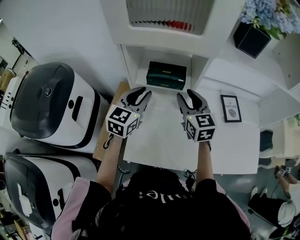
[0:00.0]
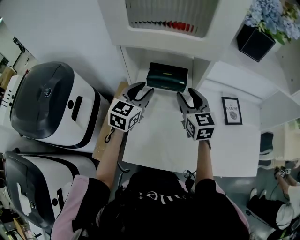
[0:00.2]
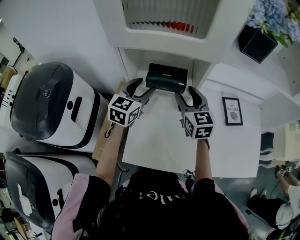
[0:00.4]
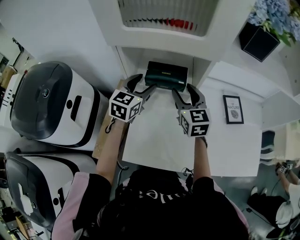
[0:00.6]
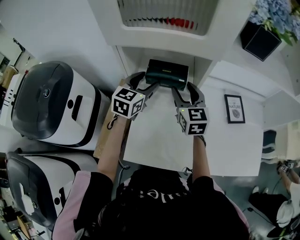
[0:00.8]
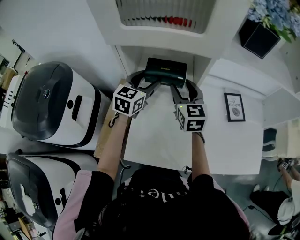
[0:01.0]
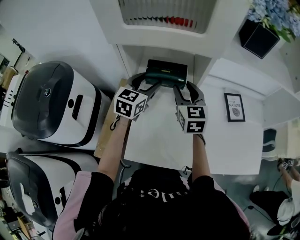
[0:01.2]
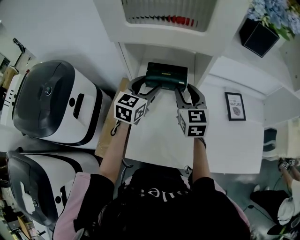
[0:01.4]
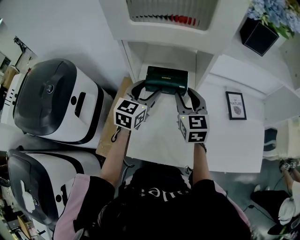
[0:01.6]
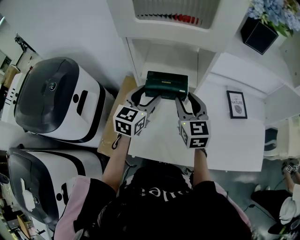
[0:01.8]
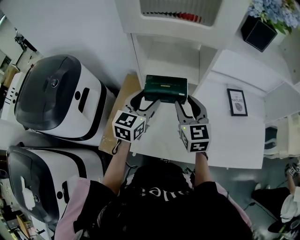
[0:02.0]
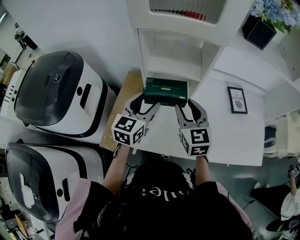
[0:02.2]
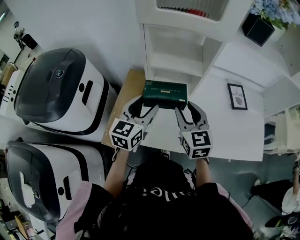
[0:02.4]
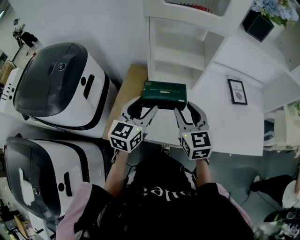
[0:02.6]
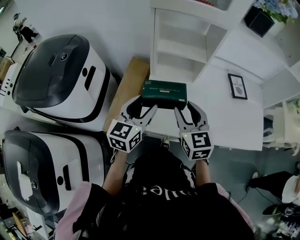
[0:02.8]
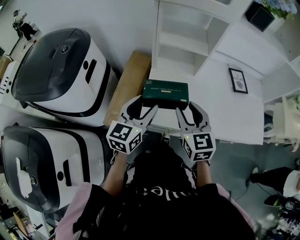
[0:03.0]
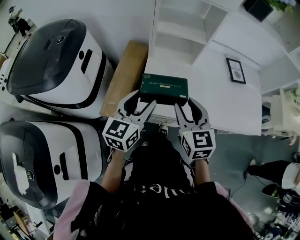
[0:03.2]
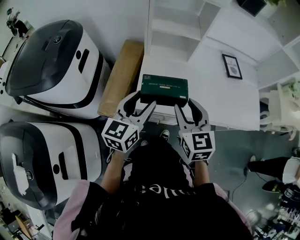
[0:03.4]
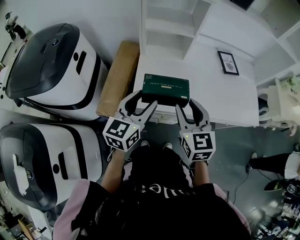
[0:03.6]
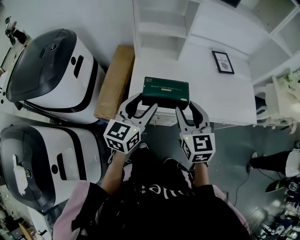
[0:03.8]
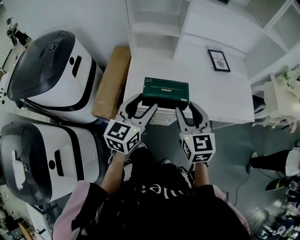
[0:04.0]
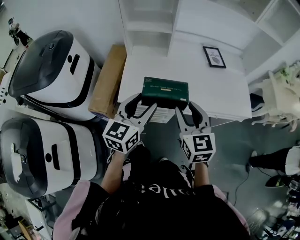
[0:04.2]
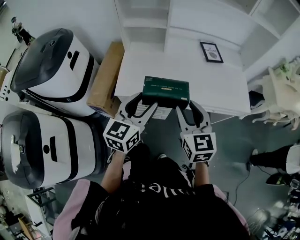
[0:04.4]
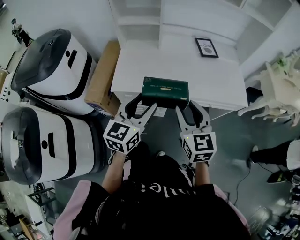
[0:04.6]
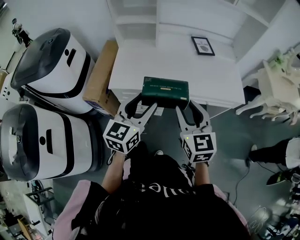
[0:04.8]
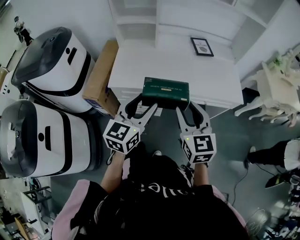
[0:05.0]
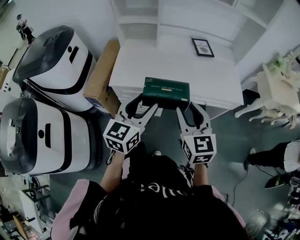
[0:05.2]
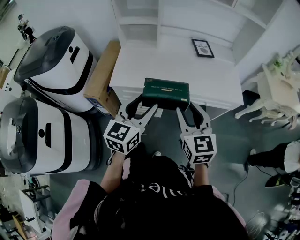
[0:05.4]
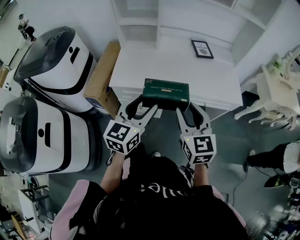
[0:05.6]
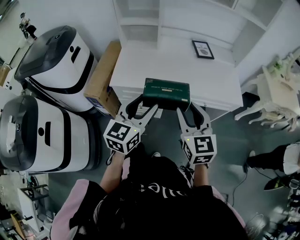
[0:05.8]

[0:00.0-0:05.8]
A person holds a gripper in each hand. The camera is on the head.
0:00.0 to 0:01.4: The left gripper travels forward by approximately 5 cm, and opens up.
0:01.4 to 0:02.8: Both grippers travel together backward, some 25 cm.
0:02.8 to 0:04.4: Both grippers move backward and to the right, some 30 cm.
0:04.4 to 0:05.8: The grippers both shift backward and to the right by roughly 10 cm.

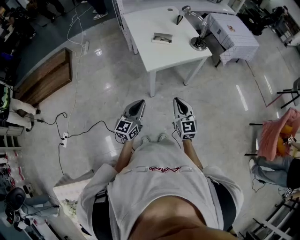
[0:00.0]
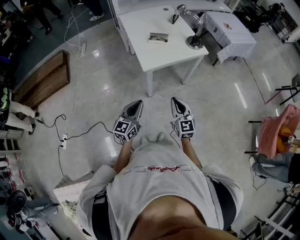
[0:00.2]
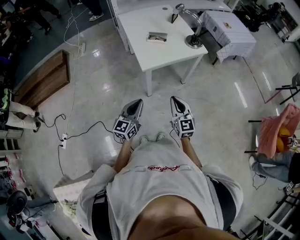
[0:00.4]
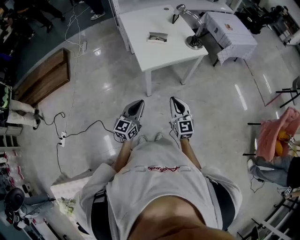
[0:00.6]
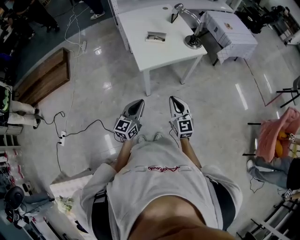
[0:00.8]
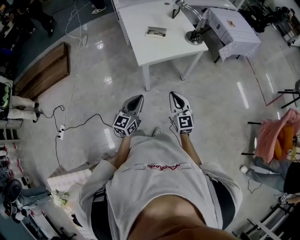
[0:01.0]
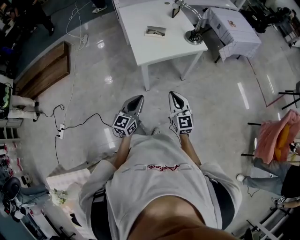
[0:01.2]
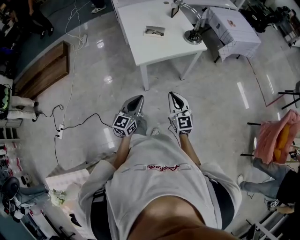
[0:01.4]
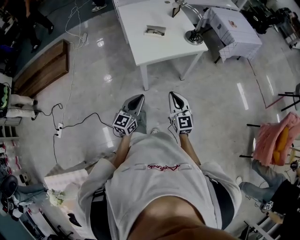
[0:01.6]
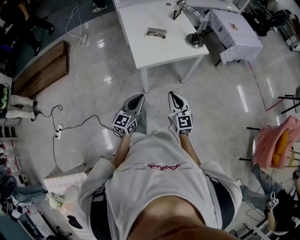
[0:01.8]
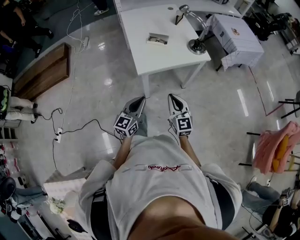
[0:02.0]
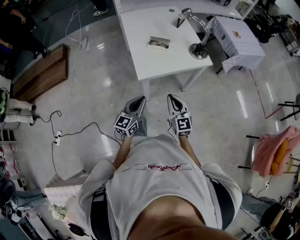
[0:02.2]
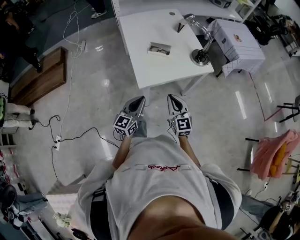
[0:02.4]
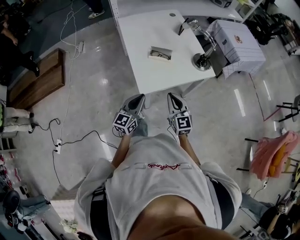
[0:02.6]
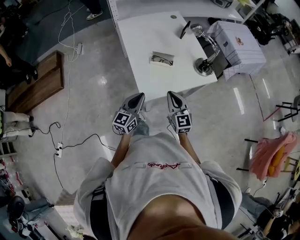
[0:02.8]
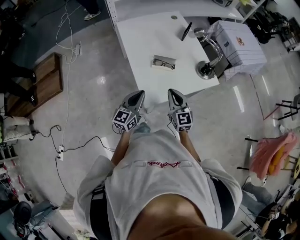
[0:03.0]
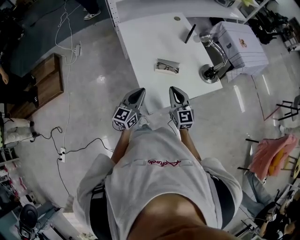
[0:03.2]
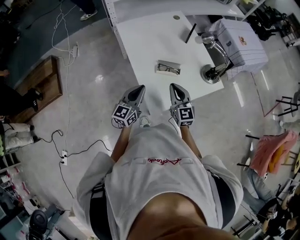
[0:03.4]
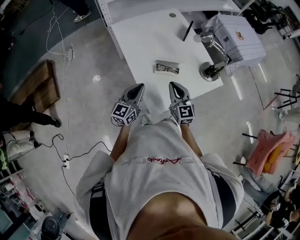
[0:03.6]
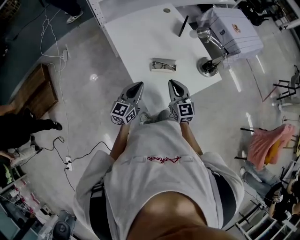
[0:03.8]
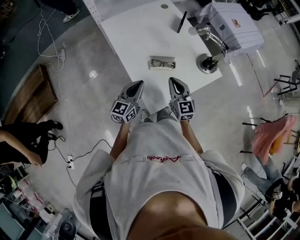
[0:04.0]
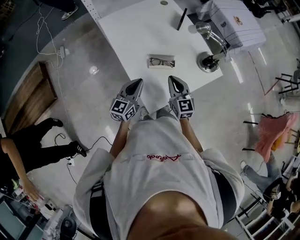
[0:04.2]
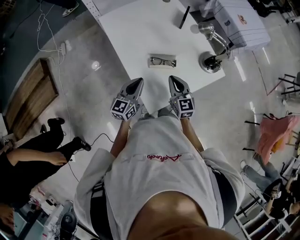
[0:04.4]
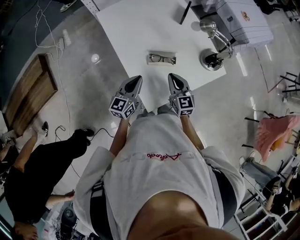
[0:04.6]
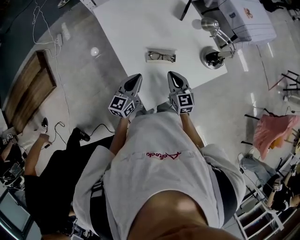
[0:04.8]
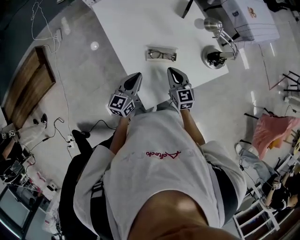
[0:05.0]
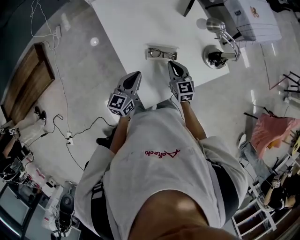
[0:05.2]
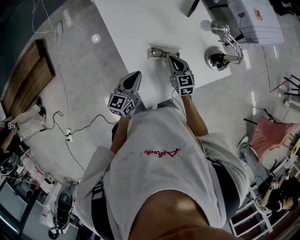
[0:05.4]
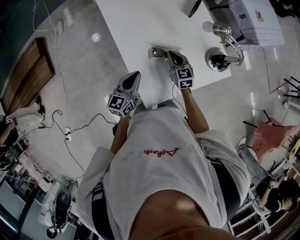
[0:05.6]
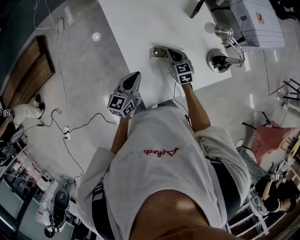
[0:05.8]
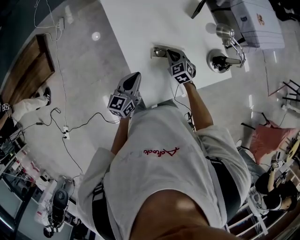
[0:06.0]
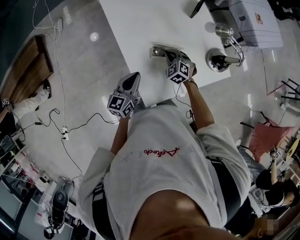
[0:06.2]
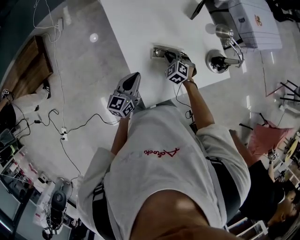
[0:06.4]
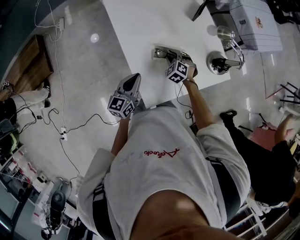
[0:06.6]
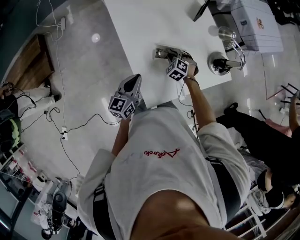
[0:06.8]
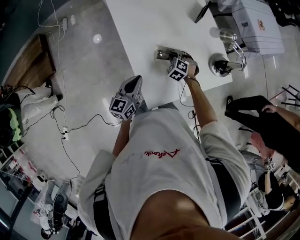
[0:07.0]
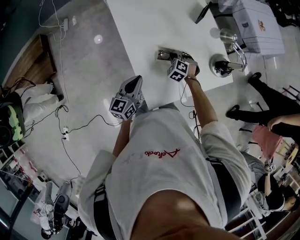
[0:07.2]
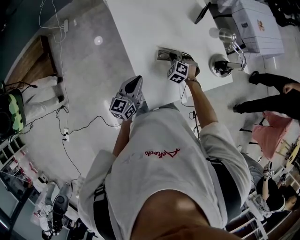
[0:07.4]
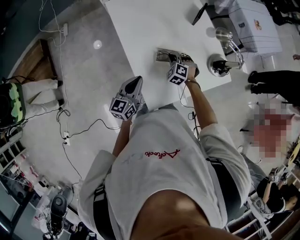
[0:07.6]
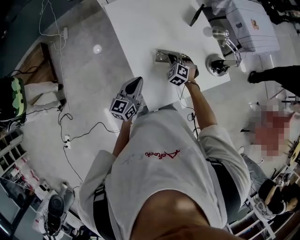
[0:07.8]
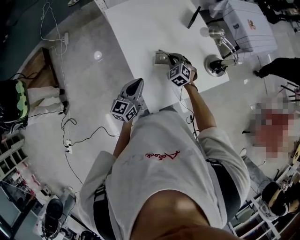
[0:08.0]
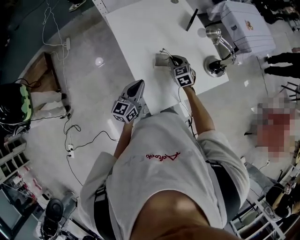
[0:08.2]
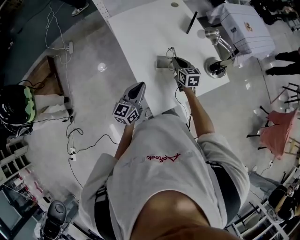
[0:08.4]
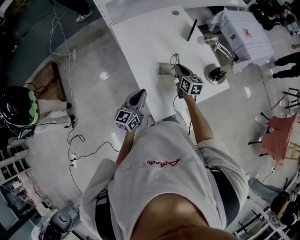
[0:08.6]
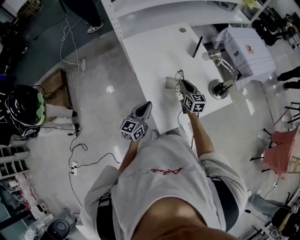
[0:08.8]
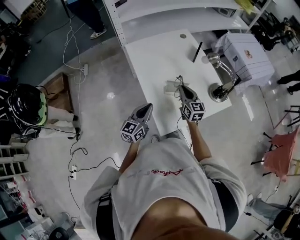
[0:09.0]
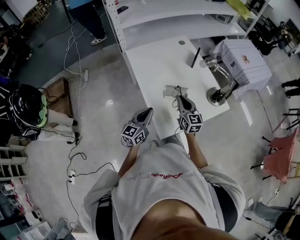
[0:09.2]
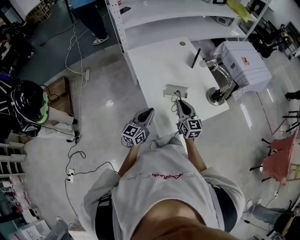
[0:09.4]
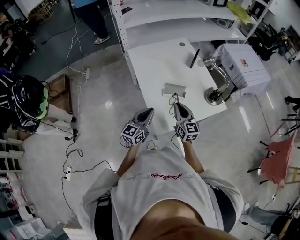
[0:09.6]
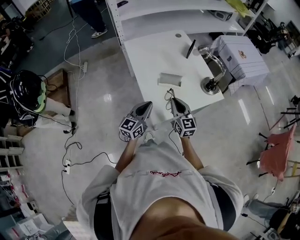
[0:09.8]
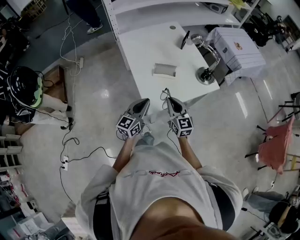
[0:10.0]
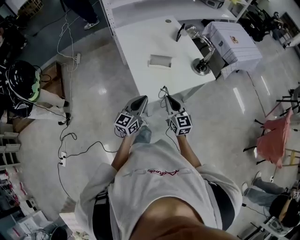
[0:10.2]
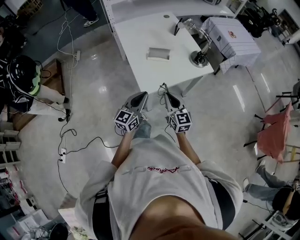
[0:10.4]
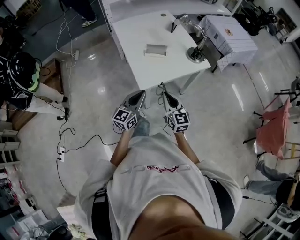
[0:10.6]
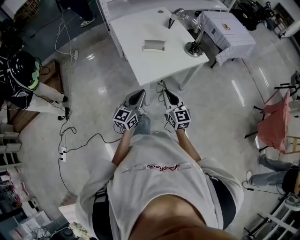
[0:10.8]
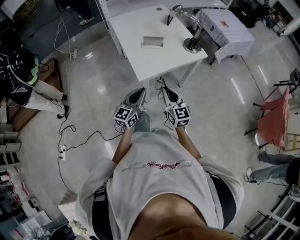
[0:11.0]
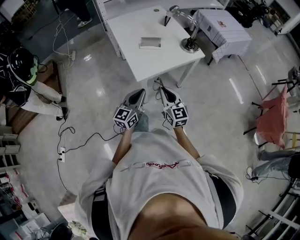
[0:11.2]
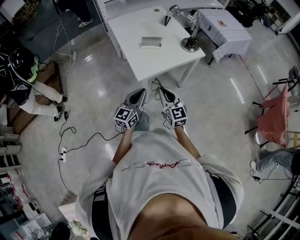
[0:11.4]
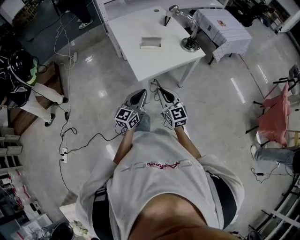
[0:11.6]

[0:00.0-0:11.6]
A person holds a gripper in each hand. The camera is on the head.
0:00.0 to 0:01.4: Both grippers travel together to the right, some 5 cm.
0:01.4 to 0:02.8: The grippers both shift forward by about 25 cm.
0:02.8 to 0:04.4: Both grippers travel together forward, roughly 15 cm.
0:04.4 to 0:05.8: The right gripper goes approximately 15 cm forward and downward, and changes its angle by some 20 degrees.
0:05.8 to 0:07.2: The right gripper is displaced downward by roughly 5 cm, rotates around the line of its fingers by roughly 40 degrees, counterclockwise from behind, and opens, then closes once more.
0:07.2 to 0:08.8: The right gripper travels upward by roughly 15 cm, and rotates around the line of its fingers by approximately 60 degrees, clockwise from behind. Meanwhile the left gripper ends up about 5 cm from where it was.
0:08.8 to 0:10.2: The left gripper heads backward and to the right, covering roughly 15 cm. The right gripper goes about 30 cm backward.
0:10.2 to 0:11.6: The grippers both shift backward by roughly 15 cm.

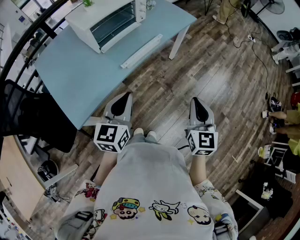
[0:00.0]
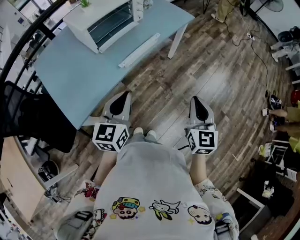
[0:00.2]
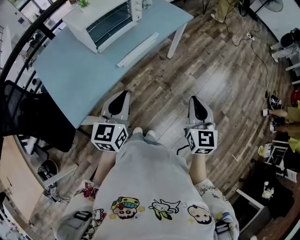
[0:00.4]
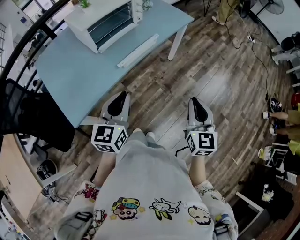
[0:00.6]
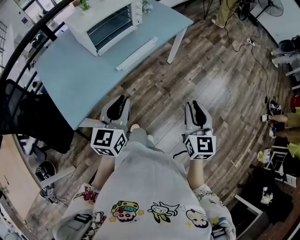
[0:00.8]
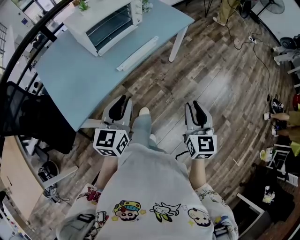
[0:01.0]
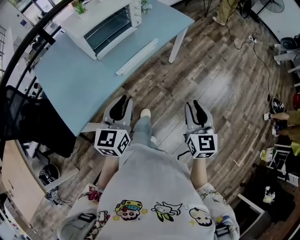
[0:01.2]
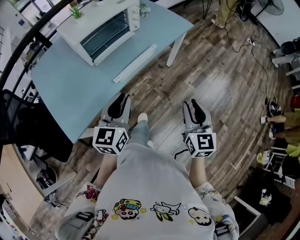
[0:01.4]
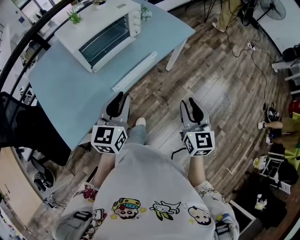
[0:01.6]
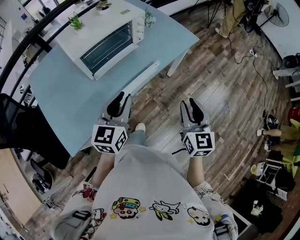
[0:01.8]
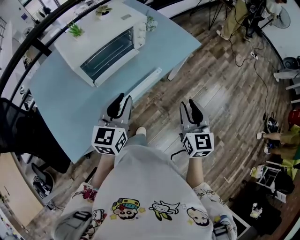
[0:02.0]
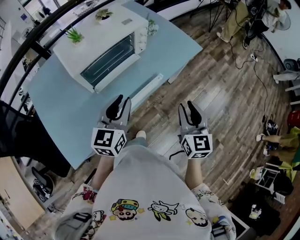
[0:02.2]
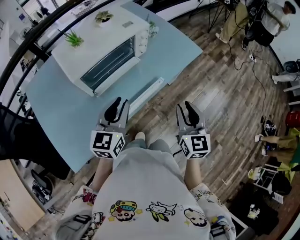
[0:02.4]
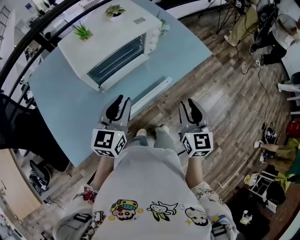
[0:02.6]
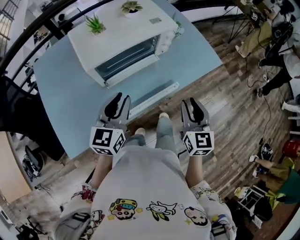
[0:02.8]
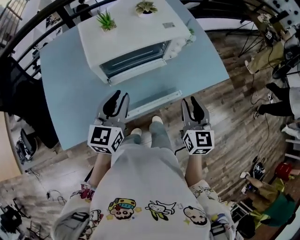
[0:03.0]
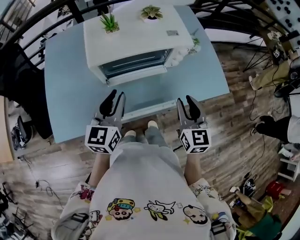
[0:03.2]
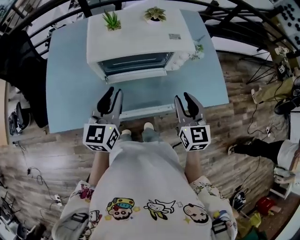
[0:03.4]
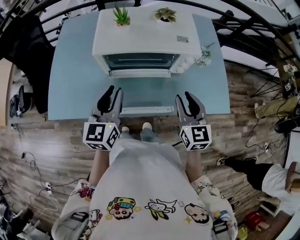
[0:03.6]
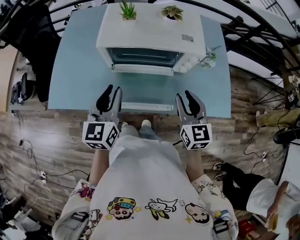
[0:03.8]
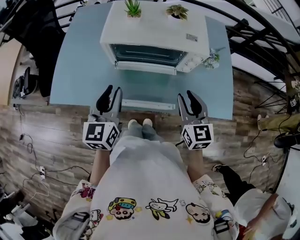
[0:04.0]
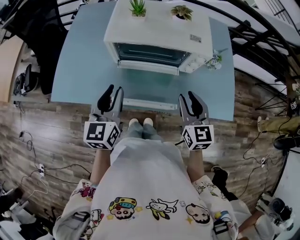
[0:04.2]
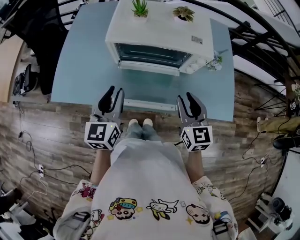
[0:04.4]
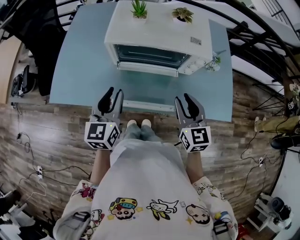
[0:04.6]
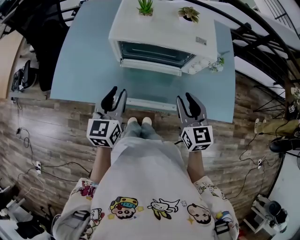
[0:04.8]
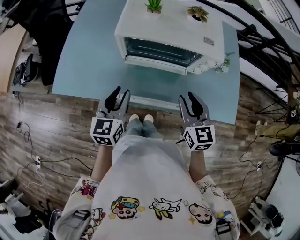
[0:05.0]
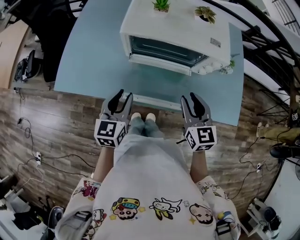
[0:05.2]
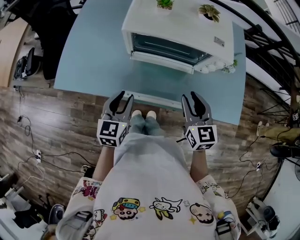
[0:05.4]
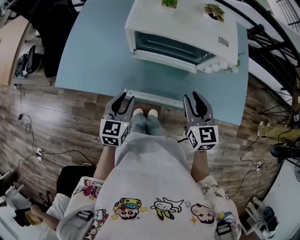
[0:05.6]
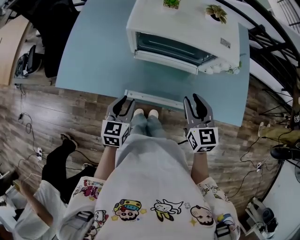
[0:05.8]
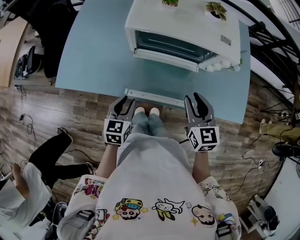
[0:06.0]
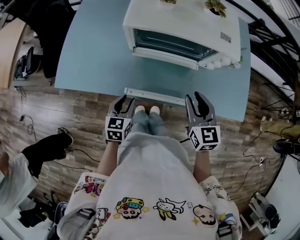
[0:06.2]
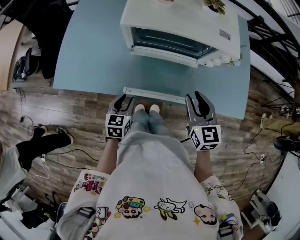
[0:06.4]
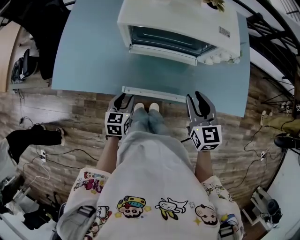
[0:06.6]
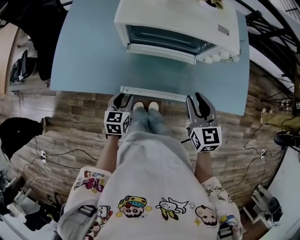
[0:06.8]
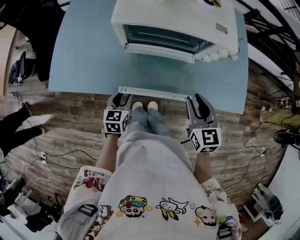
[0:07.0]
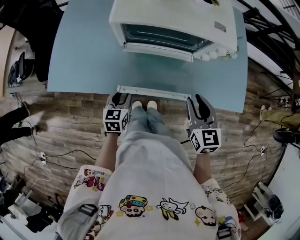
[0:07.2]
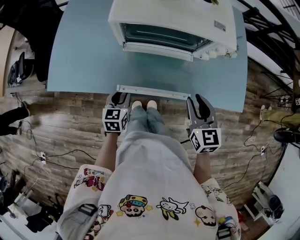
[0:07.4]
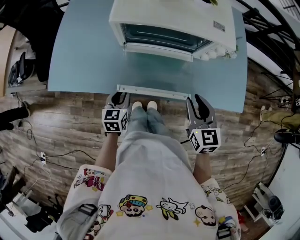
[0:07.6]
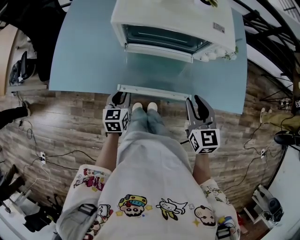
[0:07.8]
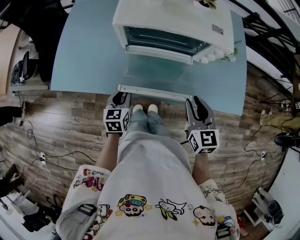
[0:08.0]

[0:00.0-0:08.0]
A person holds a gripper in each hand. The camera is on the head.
0:00.0 to 0:01.6: Both grippers travel together forward, some 15 cm. The right gripper opens up.
0:01.6 to 0:03.2: The left gripper changes place by roughly 20 cm, and changes its angle by approximately 30 degrees; the right gripper shifts by some 30 cm, and rotates some 30 degrees.
0:03.2 to 0:04.8: The right gripper turns by approximately 30 degrees, while the left gripper shifts by roughly 5 cm, and swivels some 20 degrees.
0:04.8 to 0:06.4: The left gripper heads downward, covering approximately 20 cm, and changes its angle by roughly 20 degrees; the right gripper moves about 5 cm.
0:06.4 to 0:08.0: The grippers move only a little.
